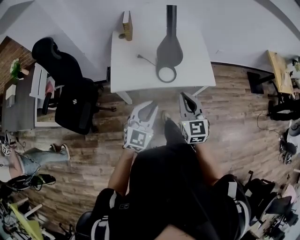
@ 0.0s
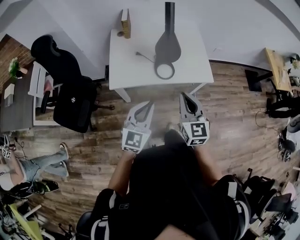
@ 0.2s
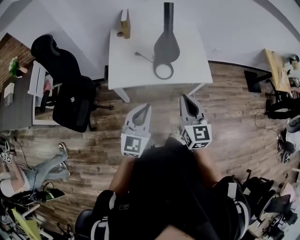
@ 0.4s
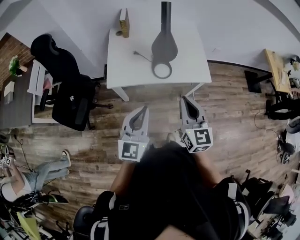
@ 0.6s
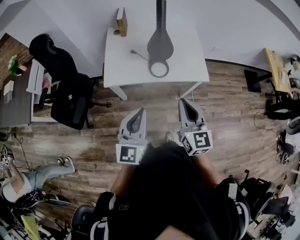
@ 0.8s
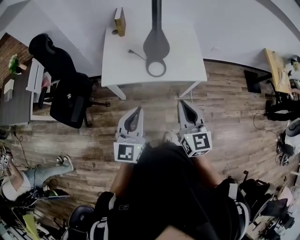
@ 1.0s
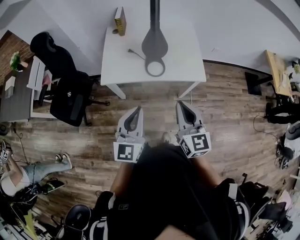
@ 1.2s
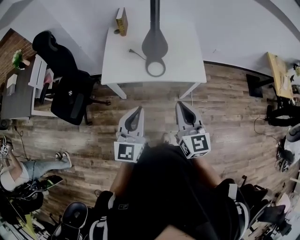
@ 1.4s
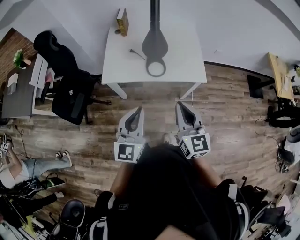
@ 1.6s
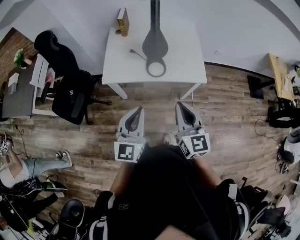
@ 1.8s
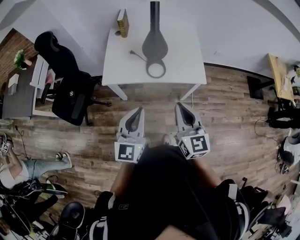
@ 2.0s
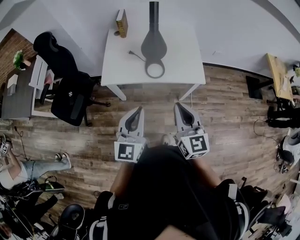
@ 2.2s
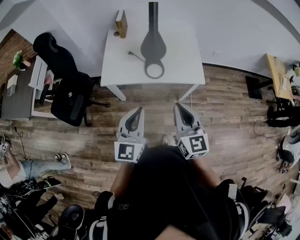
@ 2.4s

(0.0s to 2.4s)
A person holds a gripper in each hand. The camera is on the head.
0.0s - 1.2s: The right gripper travels backward and to the right by about 10 cm. The left gripper shifts about 10 cm upward and backward, and rotates approximately 30 degrees.
1.2s - 2.4s: The grippers make only small movements.

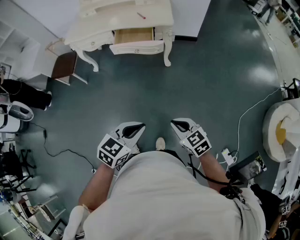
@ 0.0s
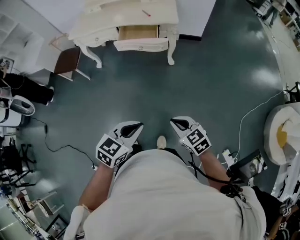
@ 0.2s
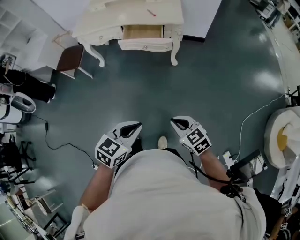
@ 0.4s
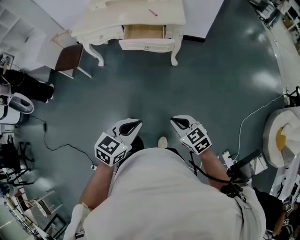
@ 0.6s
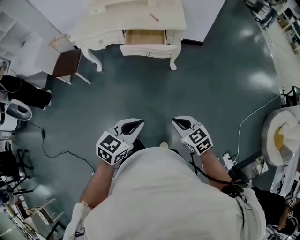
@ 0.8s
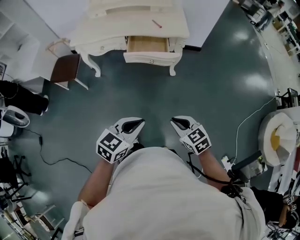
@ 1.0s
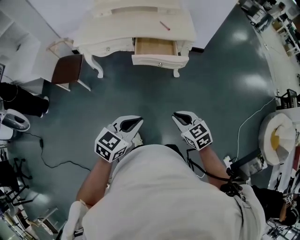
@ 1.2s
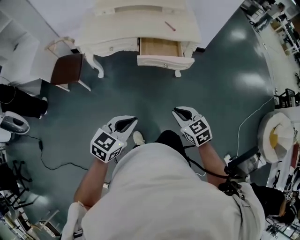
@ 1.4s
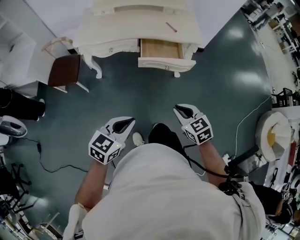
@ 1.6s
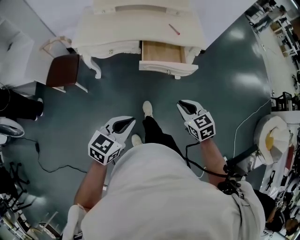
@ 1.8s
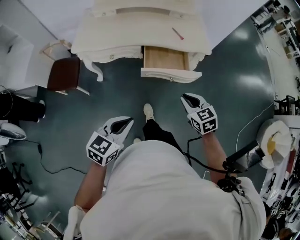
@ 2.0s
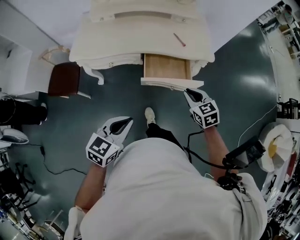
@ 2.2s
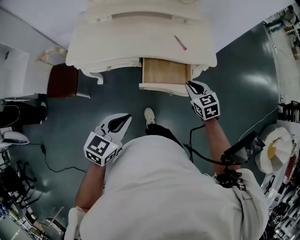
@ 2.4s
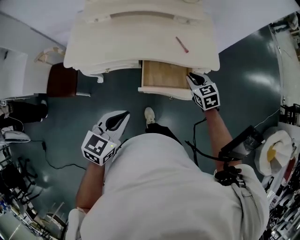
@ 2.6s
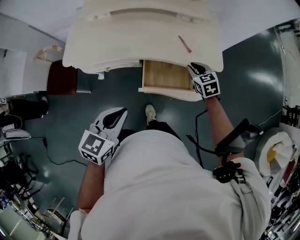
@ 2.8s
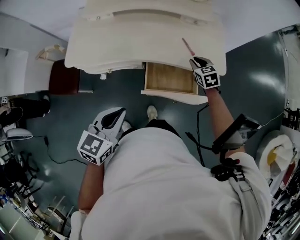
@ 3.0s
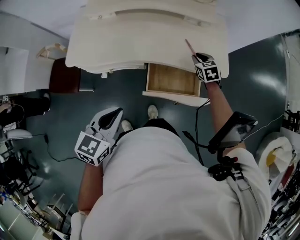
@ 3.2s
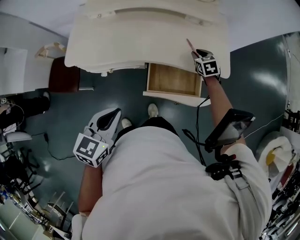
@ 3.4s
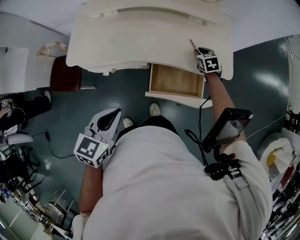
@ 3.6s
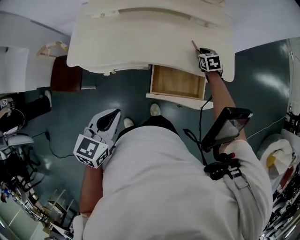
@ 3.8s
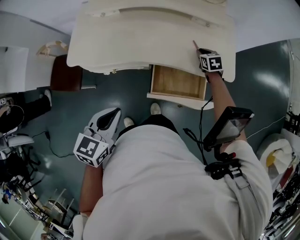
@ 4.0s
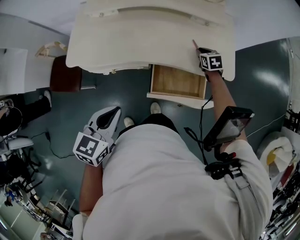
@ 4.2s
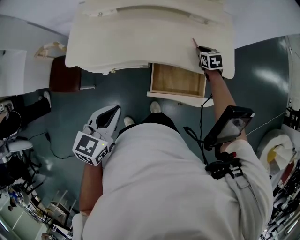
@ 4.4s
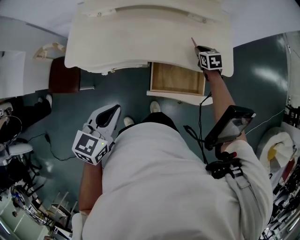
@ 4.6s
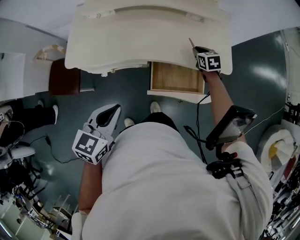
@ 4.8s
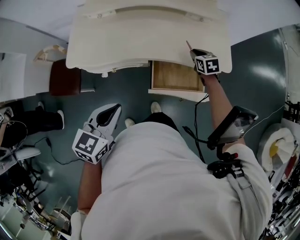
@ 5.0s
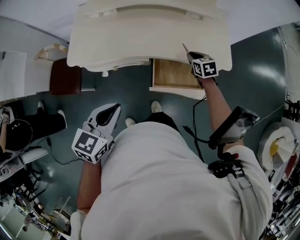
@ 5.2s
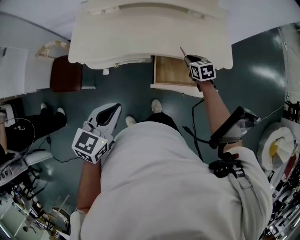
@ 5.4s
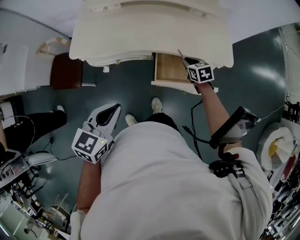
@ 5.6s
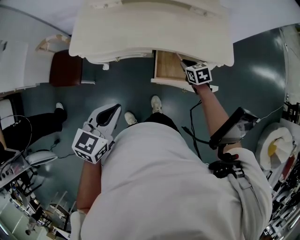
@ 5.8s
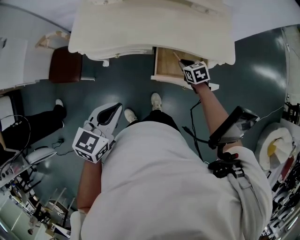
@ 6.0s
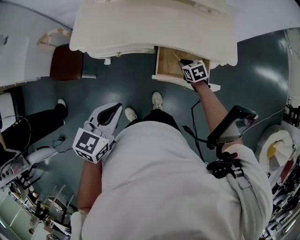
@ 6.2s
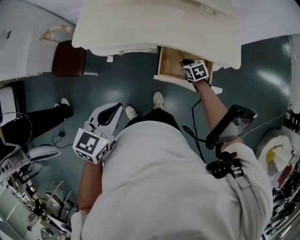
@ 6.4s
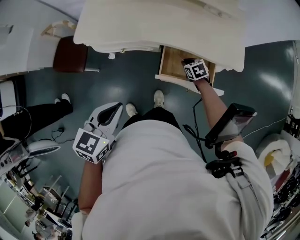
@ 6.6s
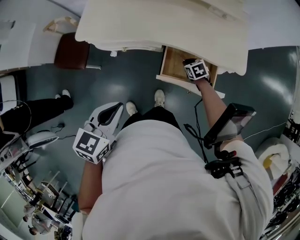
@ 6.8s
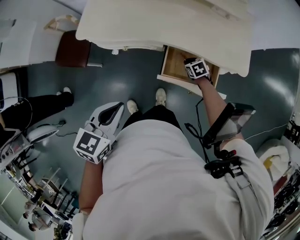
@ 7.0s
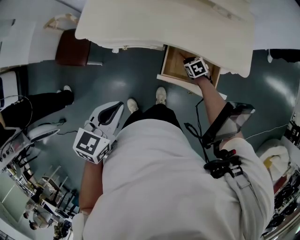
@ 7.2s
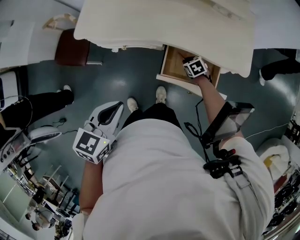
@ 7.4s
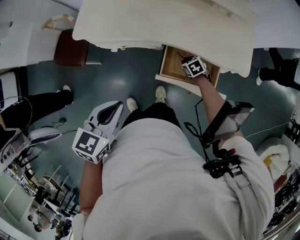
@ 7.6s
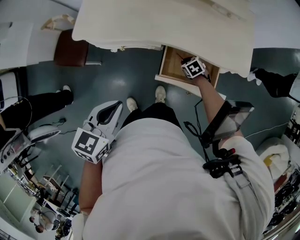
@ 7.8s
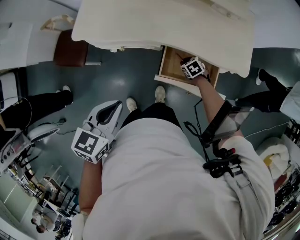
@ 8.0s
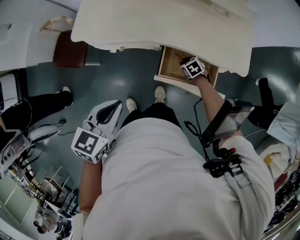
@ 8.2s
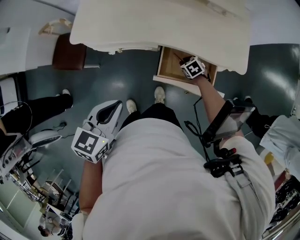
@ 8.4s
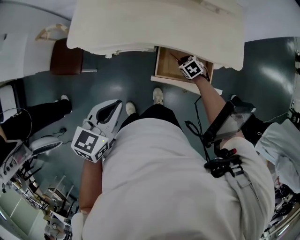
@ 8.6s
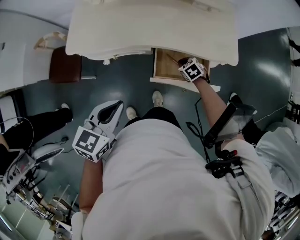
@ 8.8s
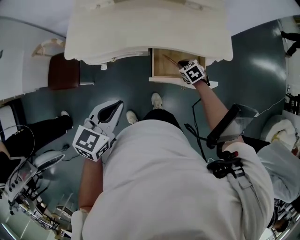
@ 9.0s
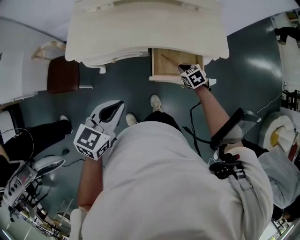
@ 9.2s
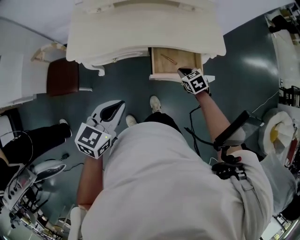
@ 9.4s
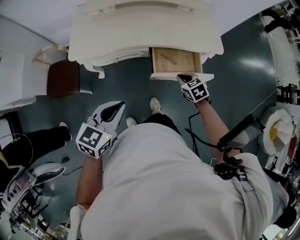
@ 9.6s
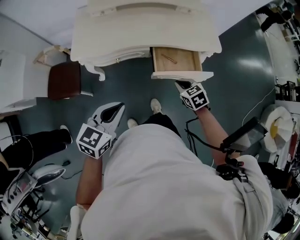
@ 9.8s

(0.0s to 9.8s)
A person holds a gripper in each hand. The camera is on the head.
0.0s - 1.4s: Both grippers move to the left and forward, approximately 30 cm.
1.4s - 2.8s: The left gripper goes approximately 35 cm forward; the right gripper goes approximately 50 cm forward.
2.8s - 4.2s: The left gripper goes approximately 5 cm to the left. The right gripper goes some 15 cm forward and downward.
4.2s - 5.6s: The right gripper is displaced backward and to the left by roughly 20 cm; the left gripper heads backward, covering approximately 5 cm.
5.6s - 7.0s: The right gripper moves downward, approximately 15 cm, and changes its angle by some 20 degrees.
7.0s - 8.4s: The grippers make only small movements.
8.4s - 9.8s: The left gripper is displaced backward and to the left by some 10 cm, and swivels approximately 20 degrees; the right gripper shifts some 30 cm upward and backward, turns by approximately 20 degrees, and closes up.

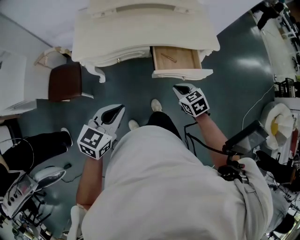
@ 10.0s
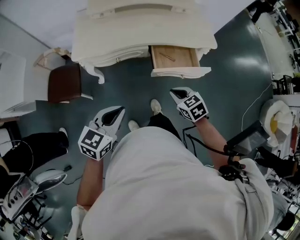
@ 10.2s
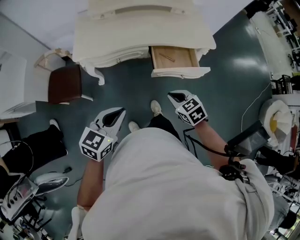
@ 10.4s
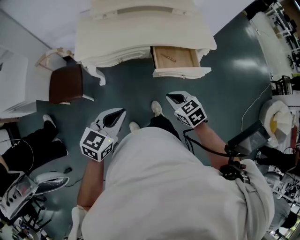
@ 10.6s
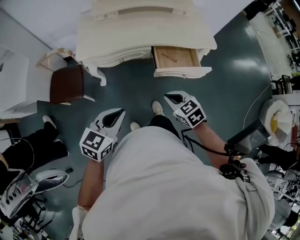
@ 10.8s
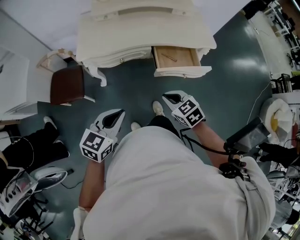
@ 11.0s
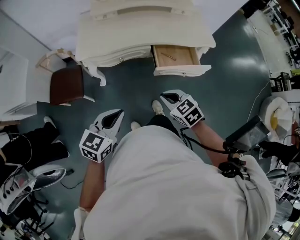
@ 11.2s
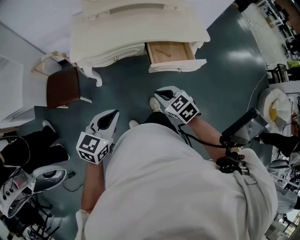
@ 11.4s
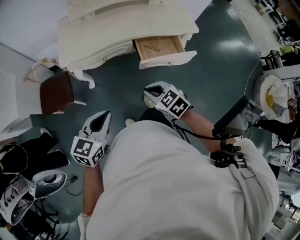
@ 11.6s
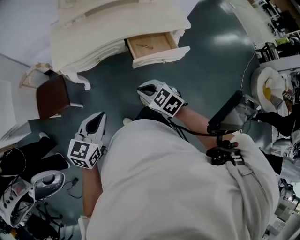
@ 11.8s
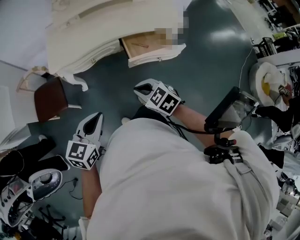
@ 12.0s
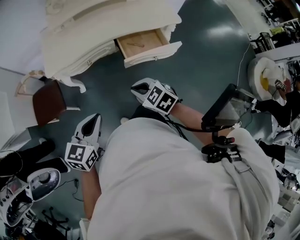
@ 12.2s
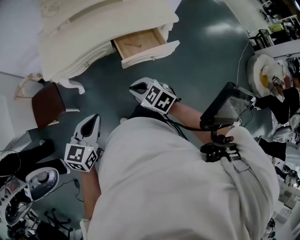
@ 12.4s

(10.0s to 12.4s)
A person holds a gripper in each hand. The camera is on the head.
10.0s - 11.2s: The left gripper heads backward, covering some 5 cm, while the right gripper shifts roughly 15 cm to the left and backward.
11.2s - 12.4s: Neither gripper changes place.

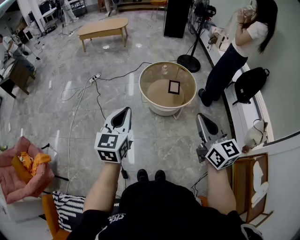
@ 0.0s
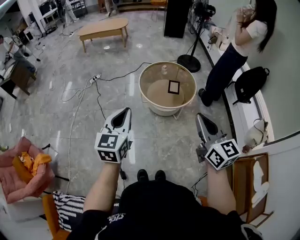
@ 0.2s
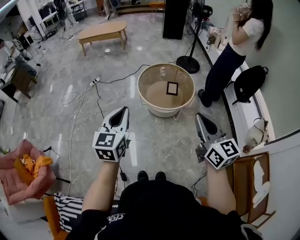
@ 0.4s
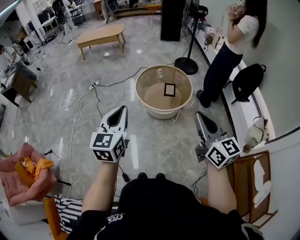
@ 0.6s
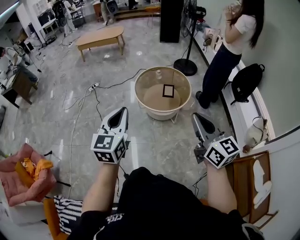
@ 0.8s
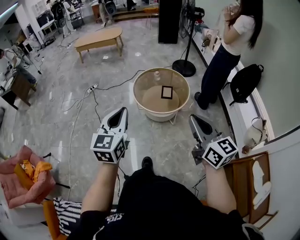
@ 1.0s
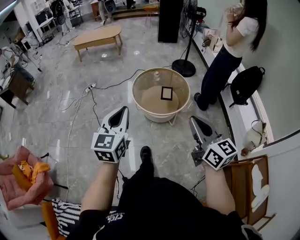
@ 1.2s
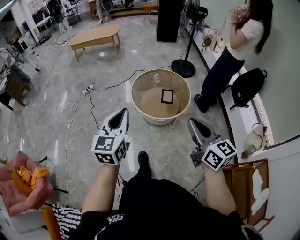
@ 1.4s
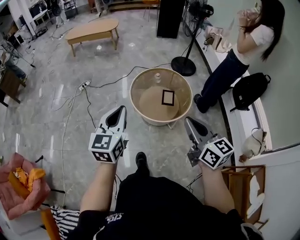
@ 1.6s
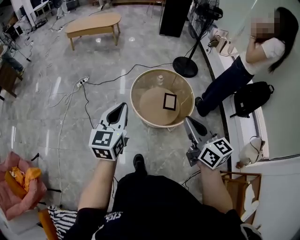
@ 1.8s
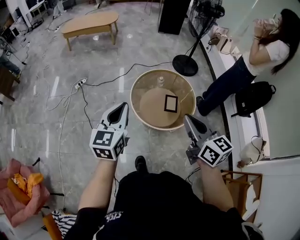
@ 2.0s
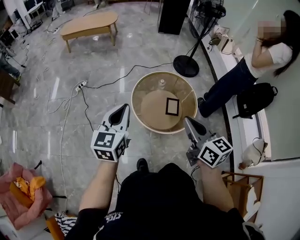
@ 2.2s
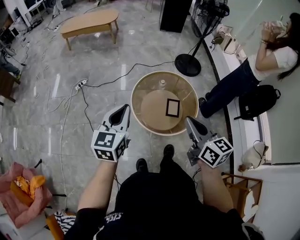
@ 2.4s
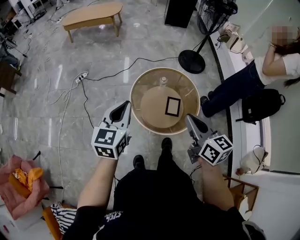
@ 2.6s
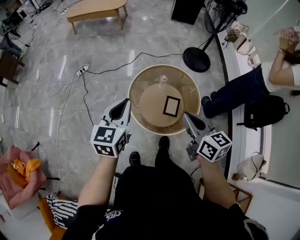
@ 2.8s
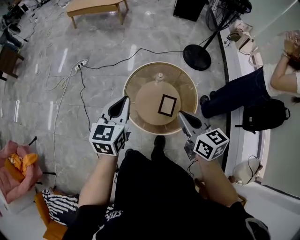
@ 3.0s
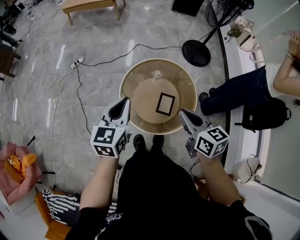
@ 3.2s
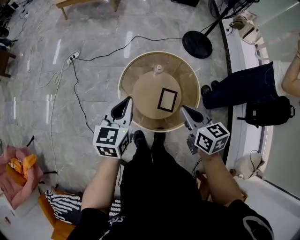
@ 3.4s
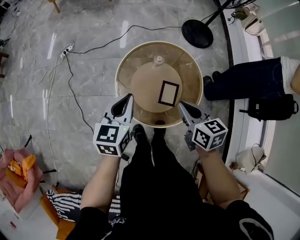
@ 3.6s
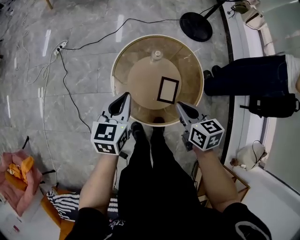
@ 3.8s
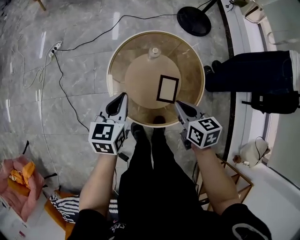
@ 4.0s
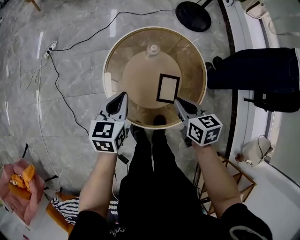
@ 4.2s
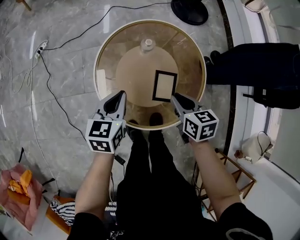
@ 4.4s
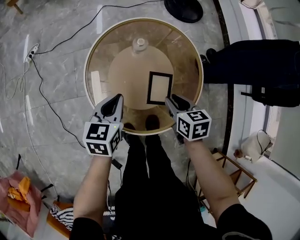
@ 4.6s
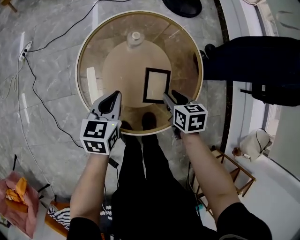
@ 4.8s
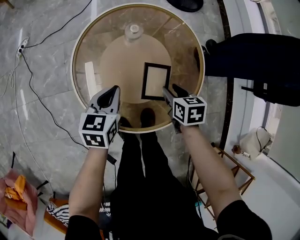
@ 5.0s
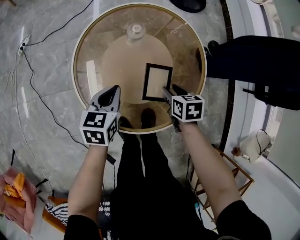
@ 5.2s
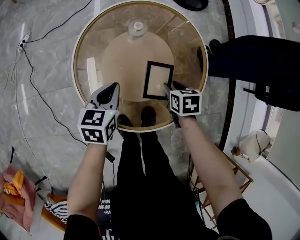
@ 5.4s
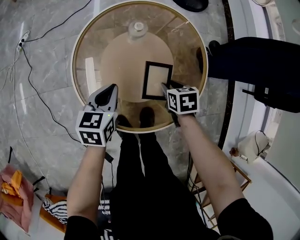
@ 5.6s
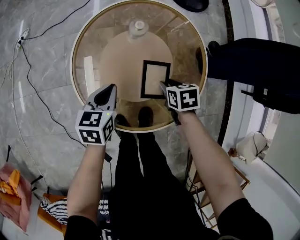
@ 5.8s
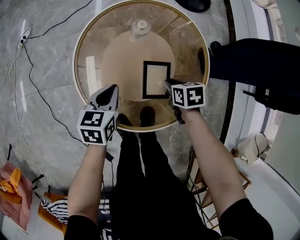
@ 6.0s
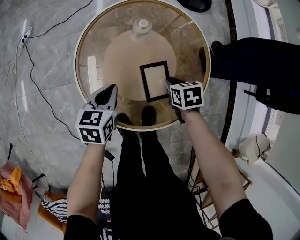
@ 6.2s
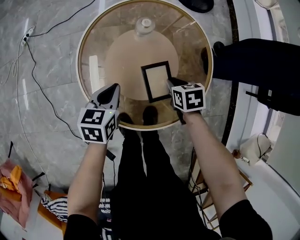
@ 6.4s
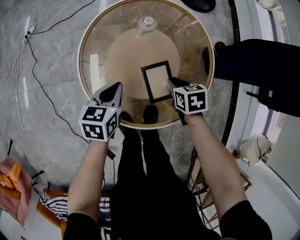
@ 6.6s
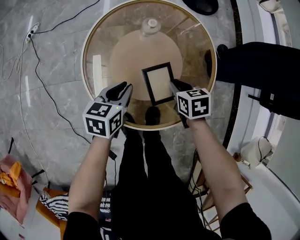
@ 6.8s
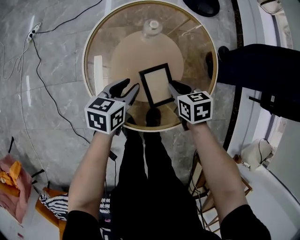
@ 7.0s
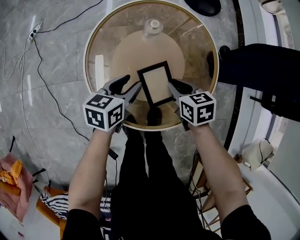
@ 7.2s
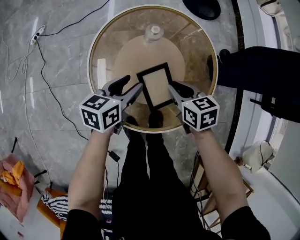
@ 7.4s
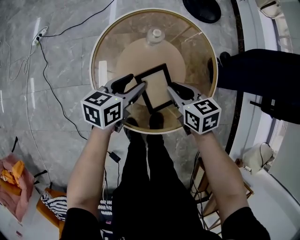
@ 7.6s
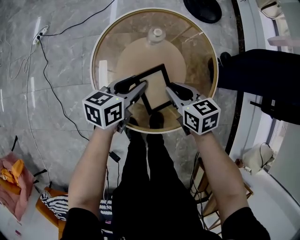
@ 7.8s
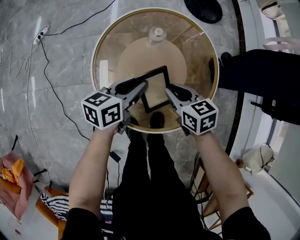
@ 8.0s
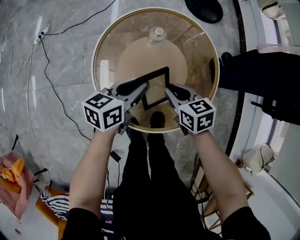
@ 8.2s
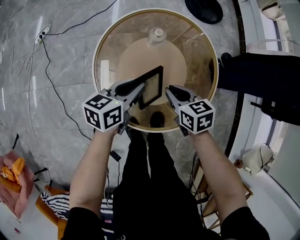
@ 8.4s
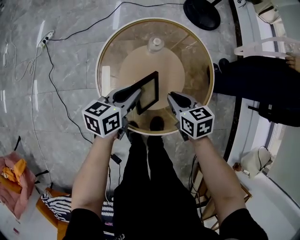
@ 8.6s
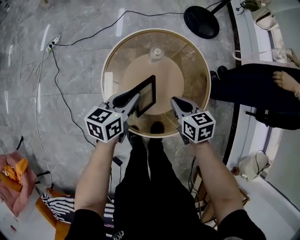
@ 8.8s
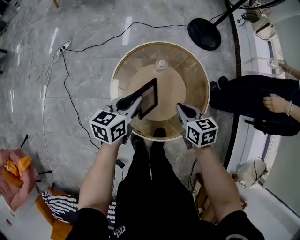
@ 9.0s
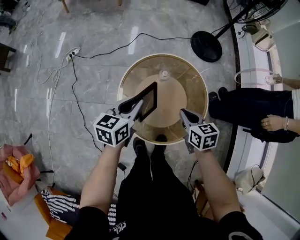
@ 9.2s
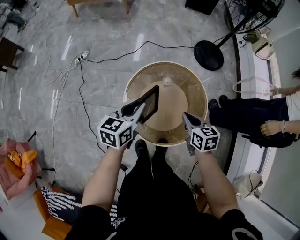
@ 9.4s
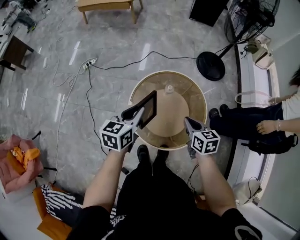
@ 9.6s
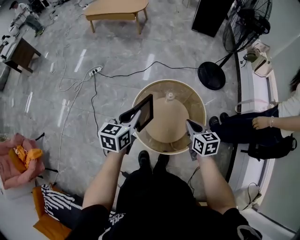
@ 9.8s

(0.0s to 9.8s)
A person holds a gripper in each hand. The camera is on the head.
0.0s - 1.4s: The right gripper moves forward, about 5 cm; the left gripper shifts roughly 10 cm forward and to the right.
1.4s - 2.8s: The grippers both shift forward by some 35 cm.
2.8s - 4.2s: Both grippers move downward, some 30 cm. The right gripper turns by some 20 degrees.
4.2s - 5.6s: Both grippers travel together downward, roughly 20 cm. The right gripper swivels approximately 30 degrees, and opens up.
5.6s - 7.0s: The left gripper opens up, while the right gripper shifts by approximately 5 cm, and closes its fingers.
7.0s - 8.4s: Both grippers move upward, some 5 cm.
8.4s - 9.8s: The two grippers go about 30 cm upward. The left gripper turns by approximately 30 degrees.
